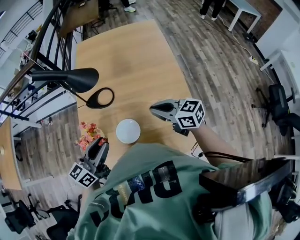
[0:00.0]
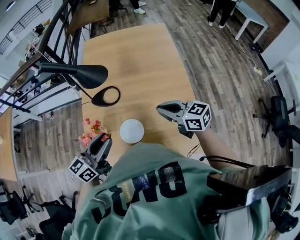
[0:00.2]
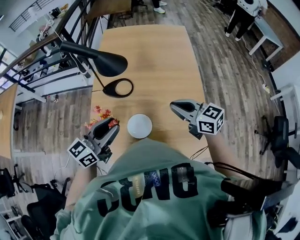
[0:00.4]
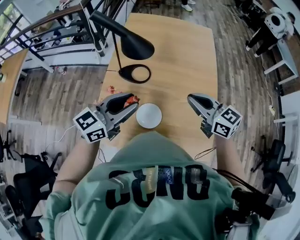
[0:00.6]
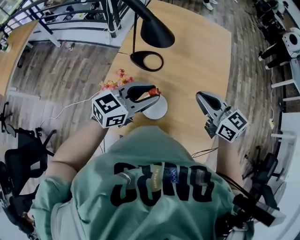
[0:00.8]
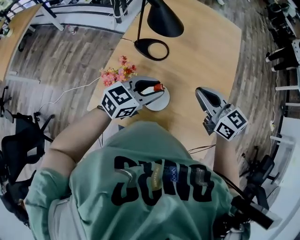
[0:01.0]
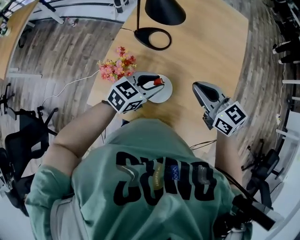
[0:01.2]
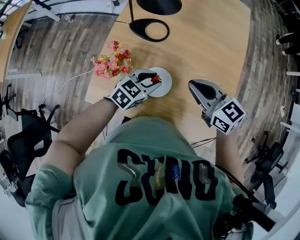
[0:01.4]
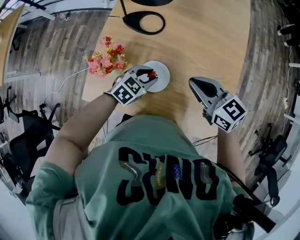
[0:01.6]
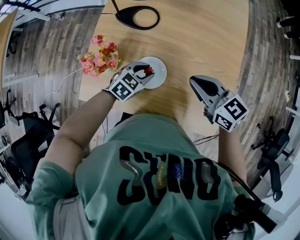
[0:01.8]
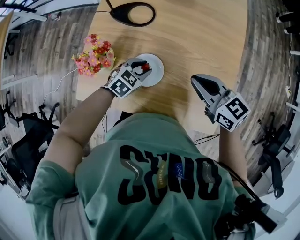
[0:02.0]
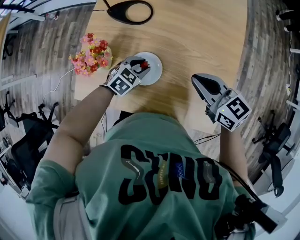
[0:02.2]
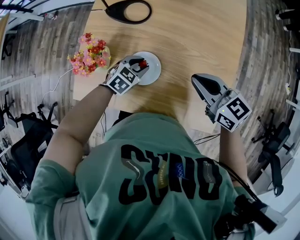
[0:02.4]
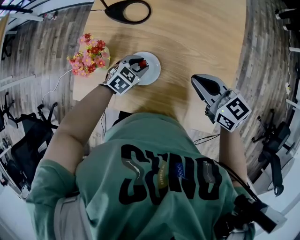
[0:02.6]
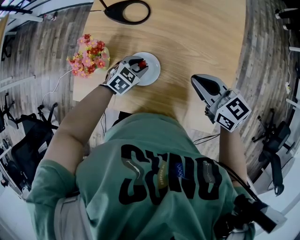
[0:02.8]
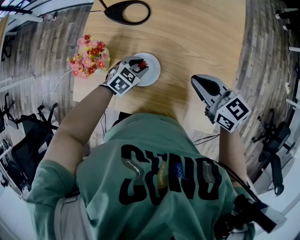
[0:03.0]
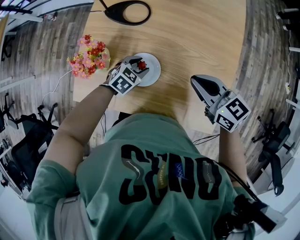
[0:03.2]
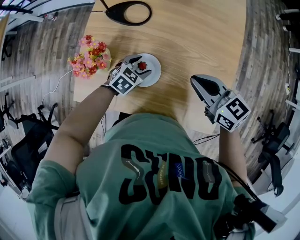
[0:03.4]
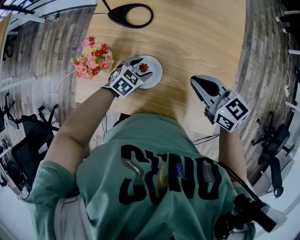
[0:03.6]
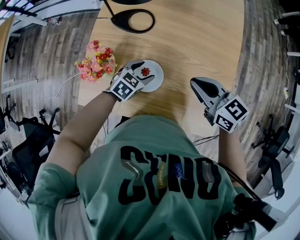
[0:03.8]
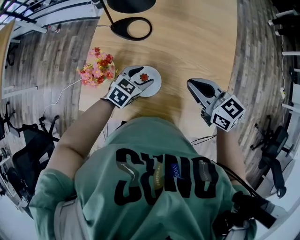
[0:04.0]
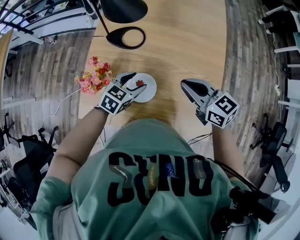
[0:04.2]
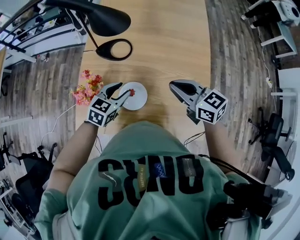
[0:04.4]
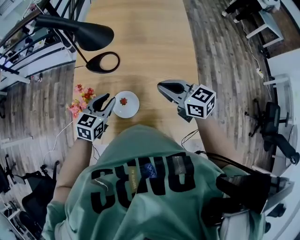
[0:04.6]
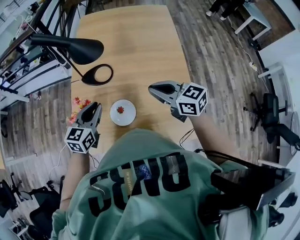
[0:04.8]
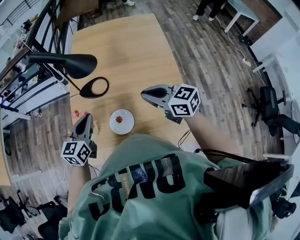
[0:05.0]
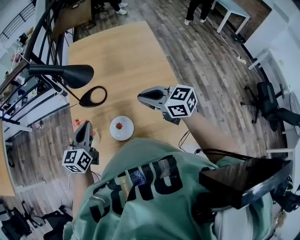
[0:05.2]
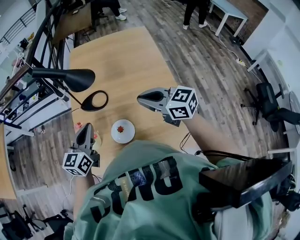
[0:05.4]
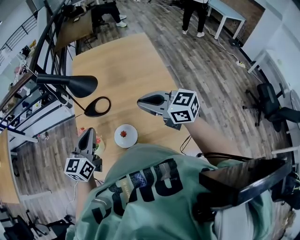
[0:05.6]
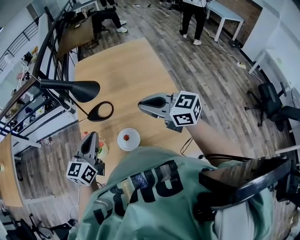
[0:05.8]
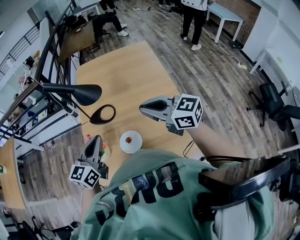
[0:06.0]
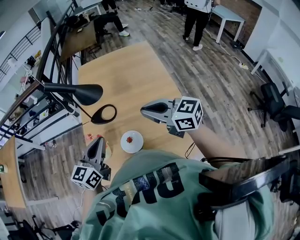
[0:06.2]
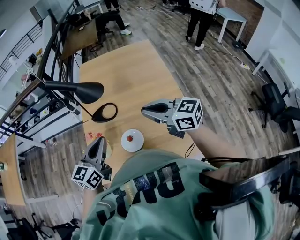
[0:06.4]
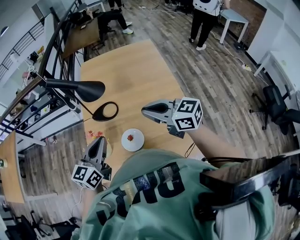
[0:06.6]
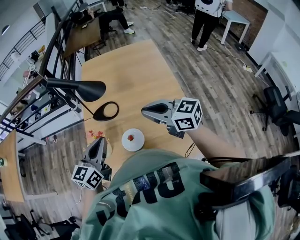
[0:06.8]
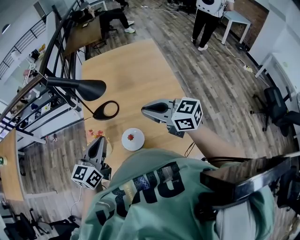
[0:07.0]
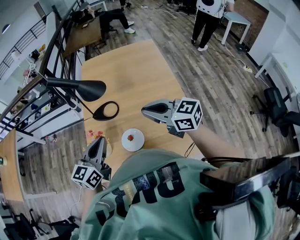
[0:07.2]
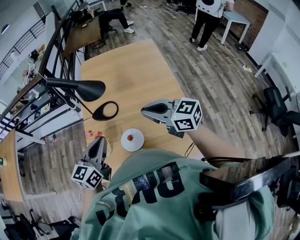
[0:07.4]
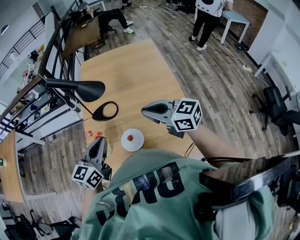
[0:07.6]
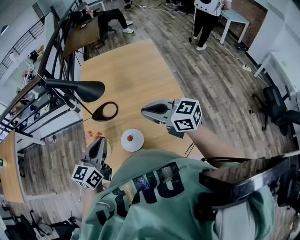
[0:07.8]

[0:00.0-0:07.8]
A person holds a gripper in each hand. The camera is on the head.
0:00.0 to 0:01.6: The right gripper is displaced to the left and downward by approximately 10 cm, while the left gripper goes about 25 cm downward, and tips its fingers downward by roughly 40 degrees.
0:01.6 to 0:03.2: The left gripper travels downward by roughly 10 cm. Meanwhile the right gripper moves approximately 5 cm.
0:03.2 to 0:04.6: The left gripper heads upward, covering roughly 20 cm, turns by approximately 30 degrees, and opens, then closes again; the right gripper goes about 10 cm upward.
0:04.6 to 0:06.2: The right gripper travels upward and backward by about 15 cm. Meanwhile the left gripper goes some 20 cm upward, changes its angle by approximately 20 degrees, and closes up.
0:06.2 to 0:07.8: The grippers make only small movements.

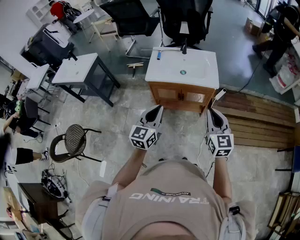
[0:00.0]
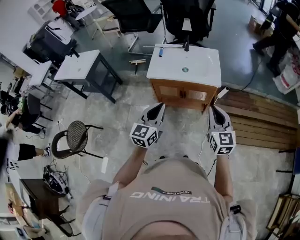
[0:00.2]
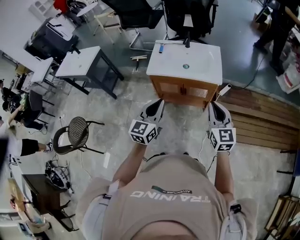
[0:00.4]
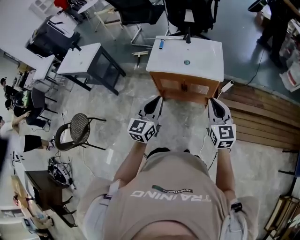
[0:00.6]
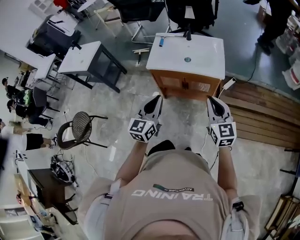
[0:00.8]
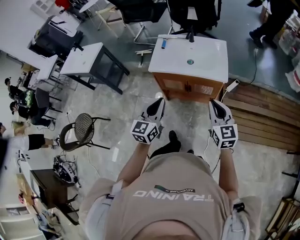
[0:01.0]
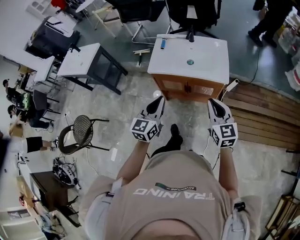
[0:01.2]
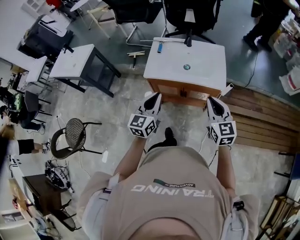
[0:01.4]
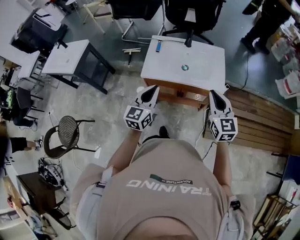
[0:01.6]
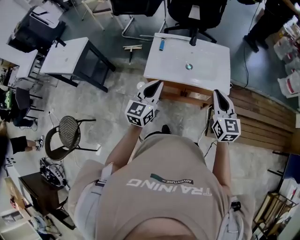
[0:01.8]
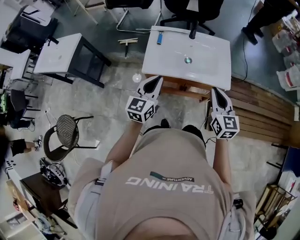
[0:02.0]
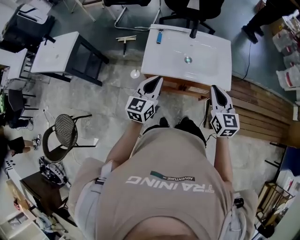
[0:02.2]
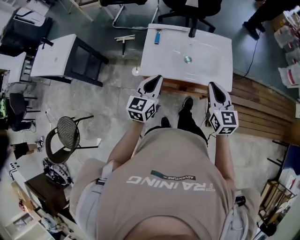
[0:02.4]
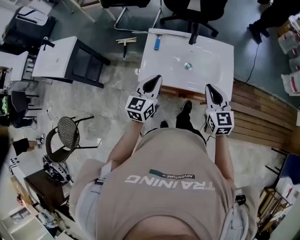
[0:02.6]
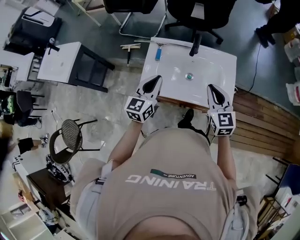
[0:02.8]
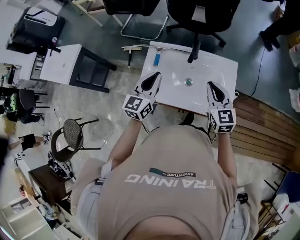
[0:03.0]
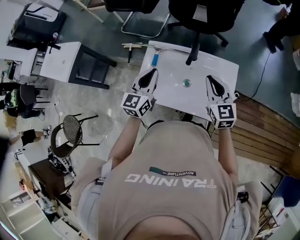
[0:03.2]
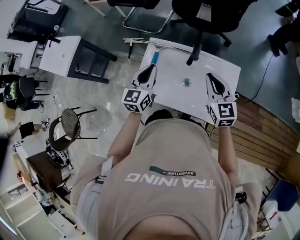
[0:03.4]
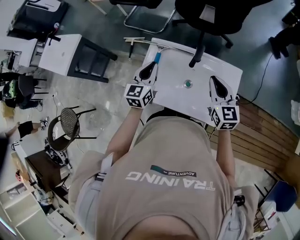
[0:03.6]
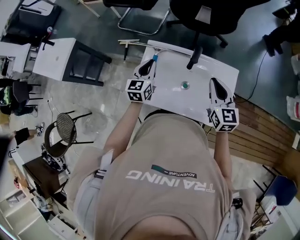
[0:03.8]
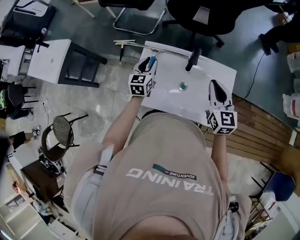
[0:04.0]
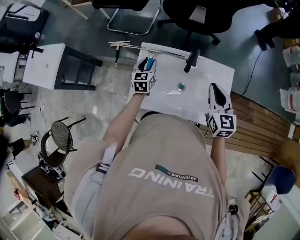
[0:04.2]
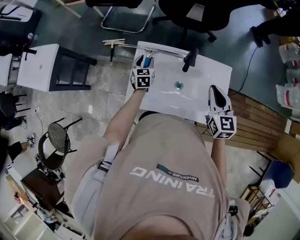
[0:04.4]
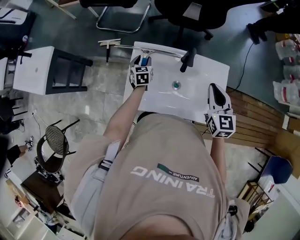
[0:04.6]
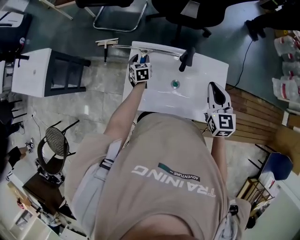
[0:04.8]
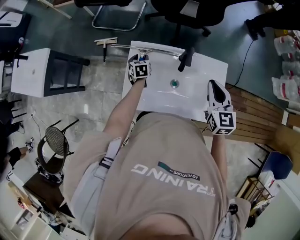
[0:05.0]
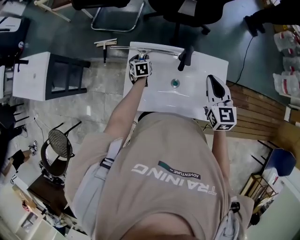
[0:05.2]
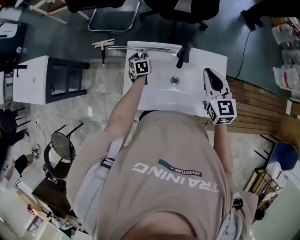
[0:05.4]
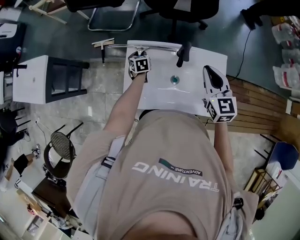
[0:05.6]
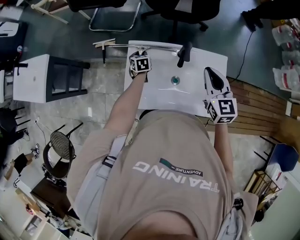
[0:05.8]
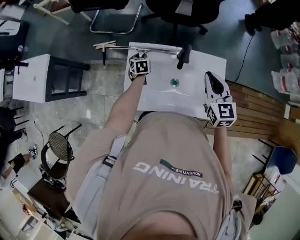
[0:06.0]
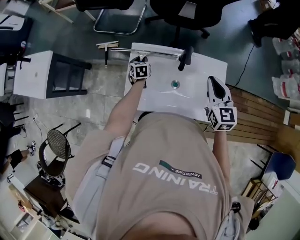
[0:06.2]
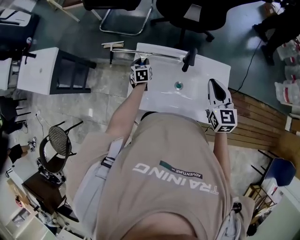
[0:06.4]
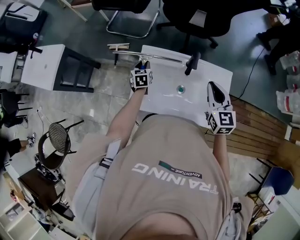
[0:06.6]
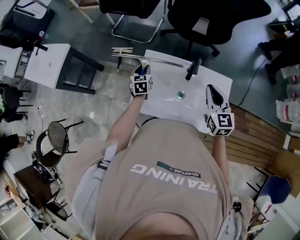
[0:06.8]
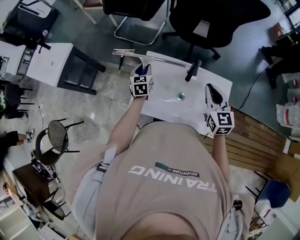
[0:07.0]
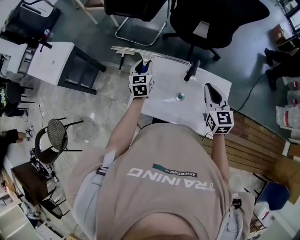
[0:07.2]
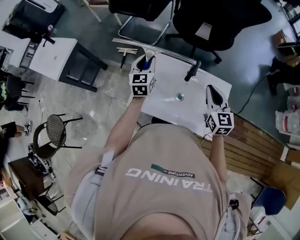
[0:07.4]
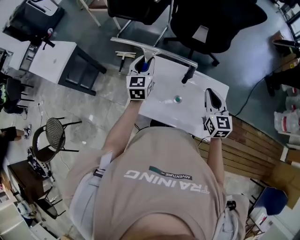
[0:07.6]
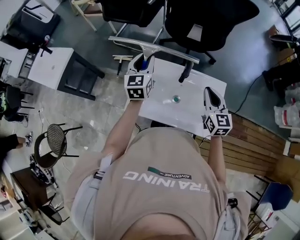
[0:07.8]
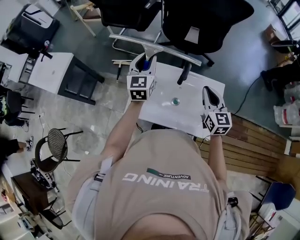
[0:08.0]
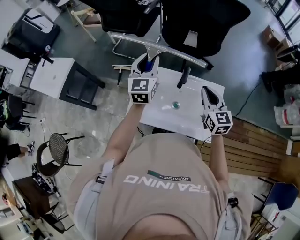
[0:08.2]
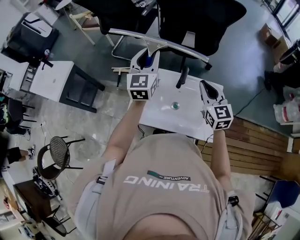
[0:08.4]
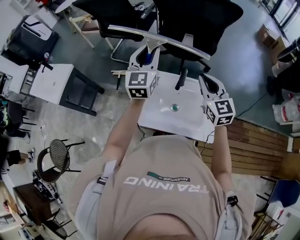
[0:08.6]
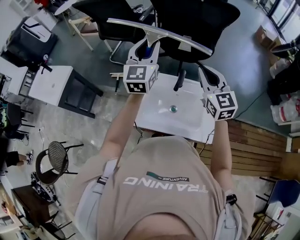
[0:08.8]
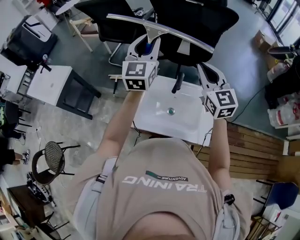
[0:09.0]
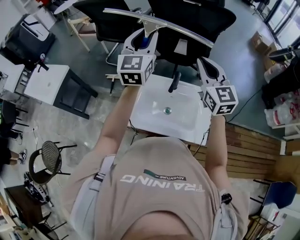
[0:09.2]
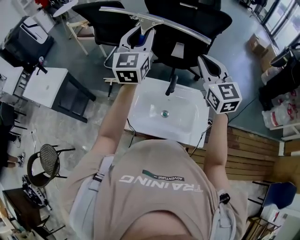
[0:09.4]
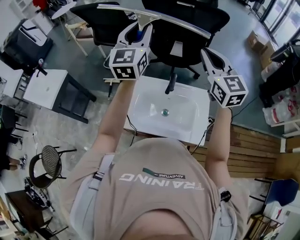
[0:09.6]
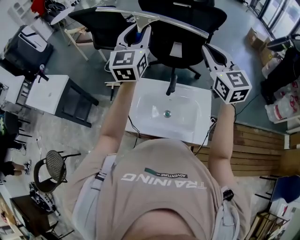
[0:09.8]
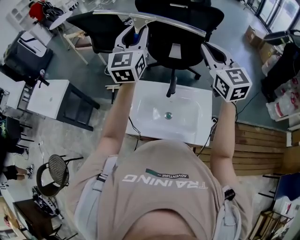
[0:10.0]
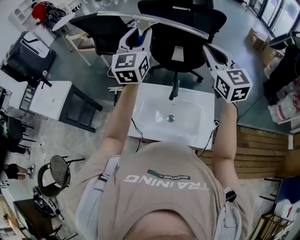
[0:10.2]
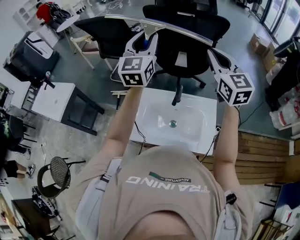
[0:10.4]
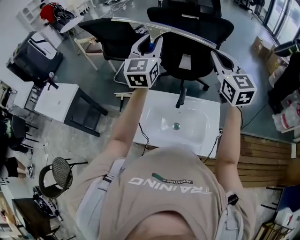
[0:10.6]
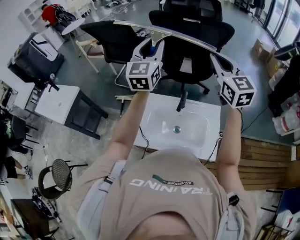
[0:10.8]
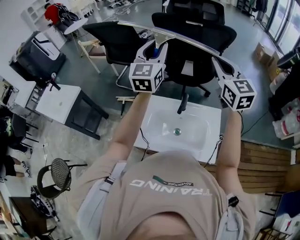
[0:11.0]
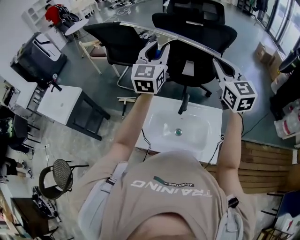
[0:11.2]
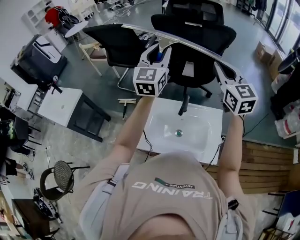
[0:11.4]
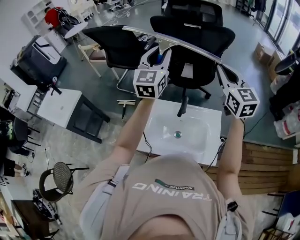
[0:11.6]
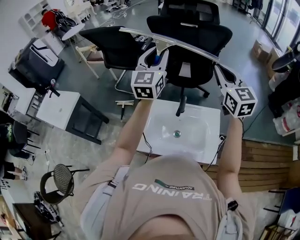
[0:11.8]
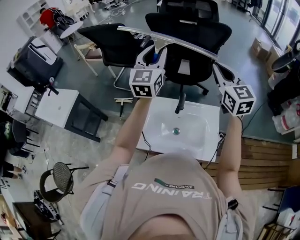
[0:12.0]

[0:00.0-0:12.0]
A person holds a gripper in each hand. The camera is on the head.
0:00.0 to 0:01.6: The two grippers go approximately 20 cm forward.
0:01.6 to 0:03.0: Both grippers move forward, approximately 25 cm.
0:03.0 to 0:04.4: The right gripper is displaced forward by some 5 cm, while the left gripper heads downward and forward, covering roughly 30 cm, turns by about 30 degrees, and opens.
0:04.4 to 0:06.0: The left gripper shifts some 10 cm downward.
0:06.0 to 0:07.6: The left gripper heads upward, covering approximately 30 cm, and points its fingers approximately 40 degrees further upward.
0:07.6 to 0:09.0: The grippers both shift upward by about 20 cm. The left gripper turns by some 20 degrees.
0:09.0 to 0:10.4: The grippers both shift upward by some 10 cm.
0:10.4 to 0:12.0: The grippers move only a little.

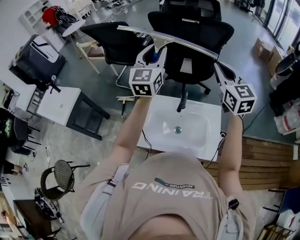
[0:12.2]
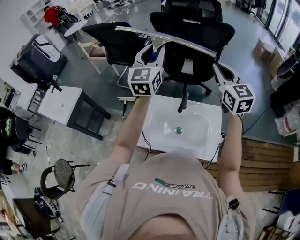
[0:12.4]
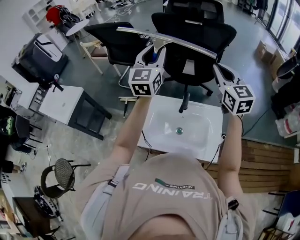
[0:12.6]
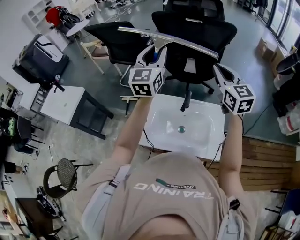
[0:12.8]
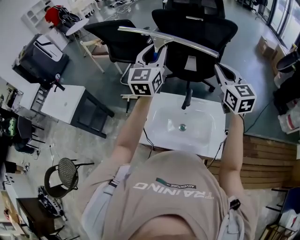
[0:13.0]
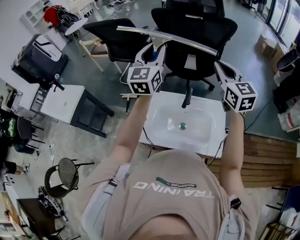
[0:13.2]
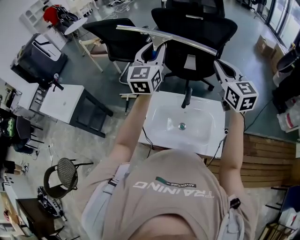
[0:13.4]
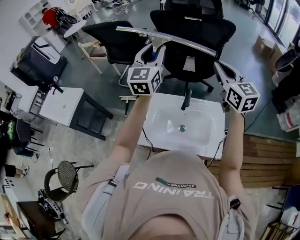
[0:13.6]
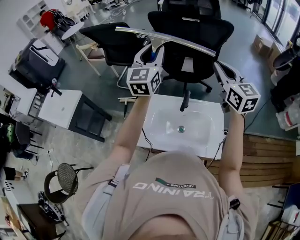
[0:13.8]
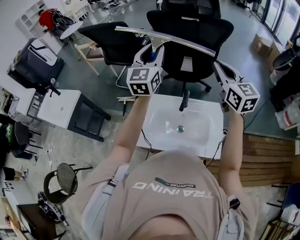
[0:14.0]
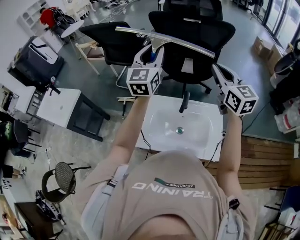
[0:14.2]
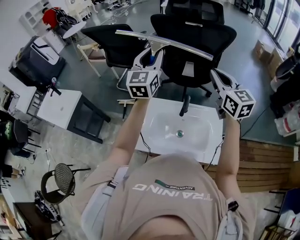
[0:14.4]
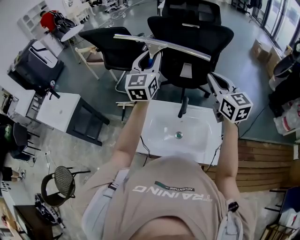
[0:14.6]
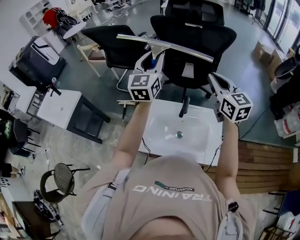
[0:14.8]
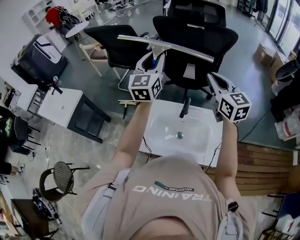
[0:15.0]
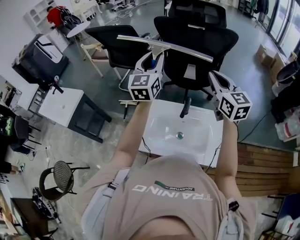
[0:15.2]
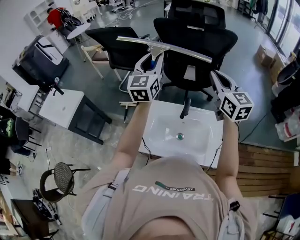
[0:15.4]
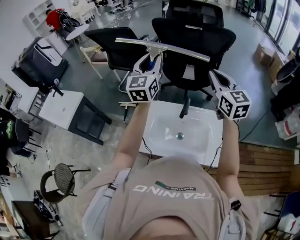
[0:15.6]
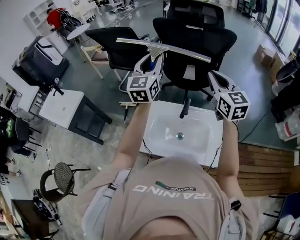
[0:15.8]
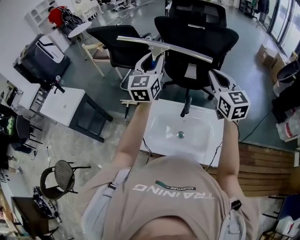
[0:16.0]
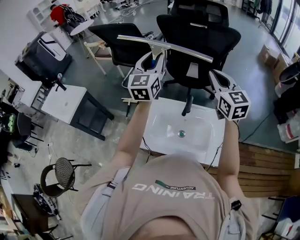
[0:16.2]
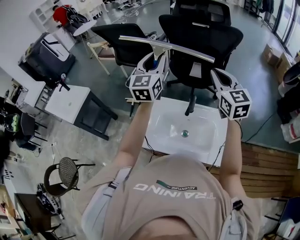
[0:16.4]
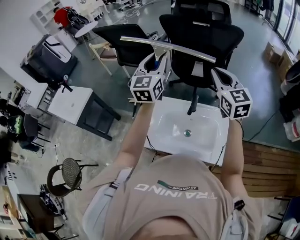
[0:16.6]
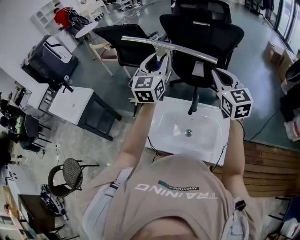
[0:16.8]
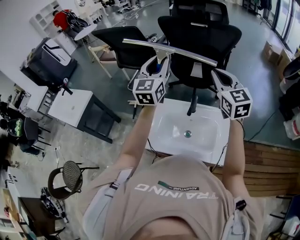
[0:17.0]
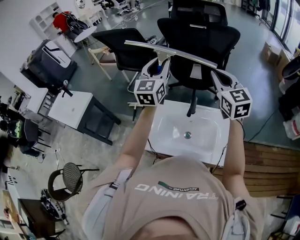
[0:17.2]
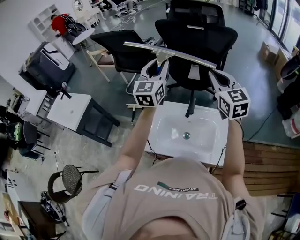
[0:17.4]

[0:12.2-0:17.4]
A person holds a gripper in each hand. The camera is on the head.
0:12.2 to 0:17.4: The grippers make only small movements.
